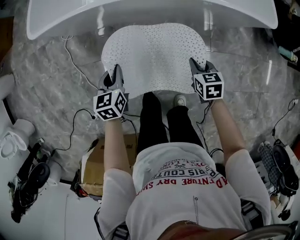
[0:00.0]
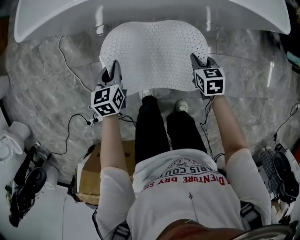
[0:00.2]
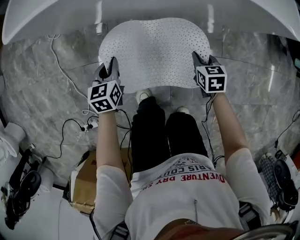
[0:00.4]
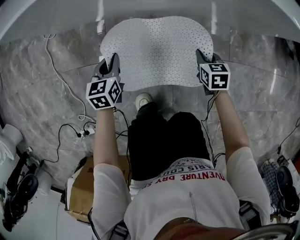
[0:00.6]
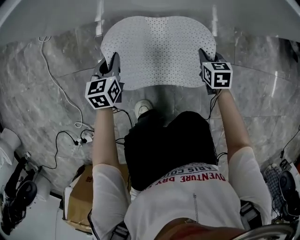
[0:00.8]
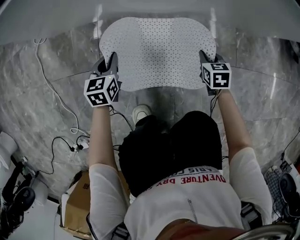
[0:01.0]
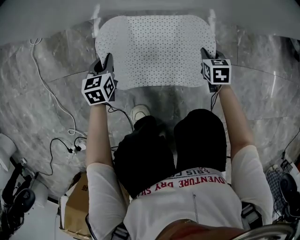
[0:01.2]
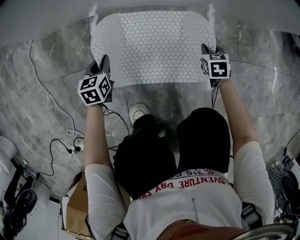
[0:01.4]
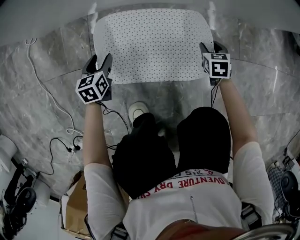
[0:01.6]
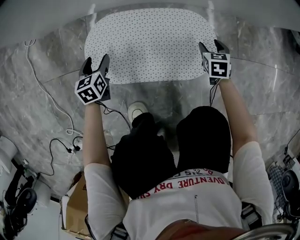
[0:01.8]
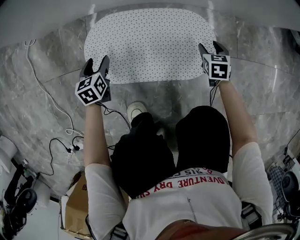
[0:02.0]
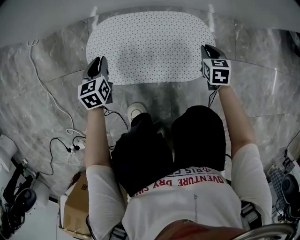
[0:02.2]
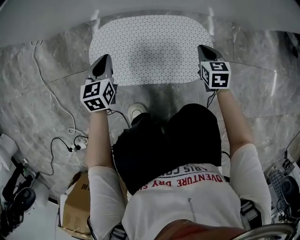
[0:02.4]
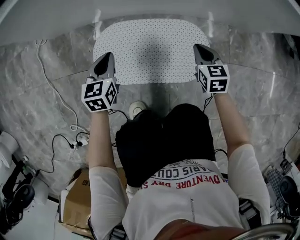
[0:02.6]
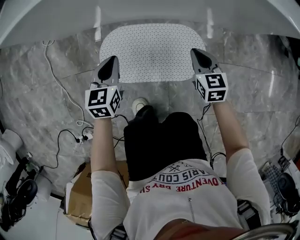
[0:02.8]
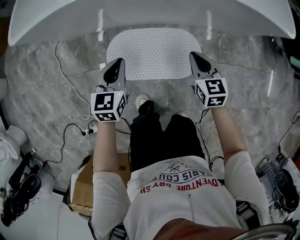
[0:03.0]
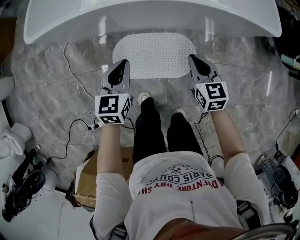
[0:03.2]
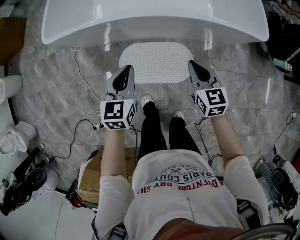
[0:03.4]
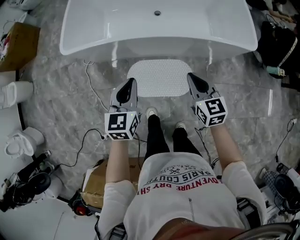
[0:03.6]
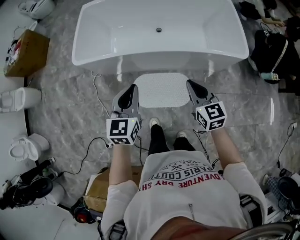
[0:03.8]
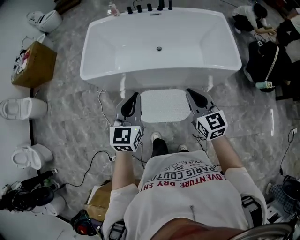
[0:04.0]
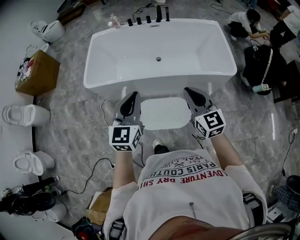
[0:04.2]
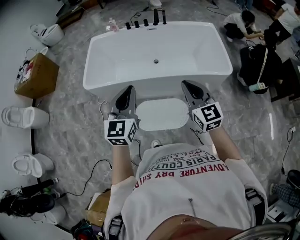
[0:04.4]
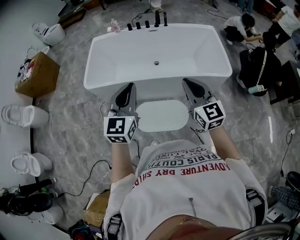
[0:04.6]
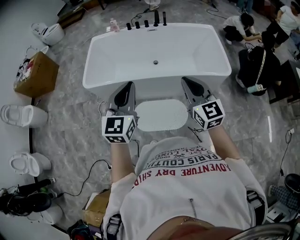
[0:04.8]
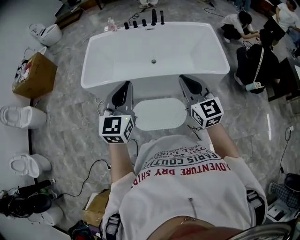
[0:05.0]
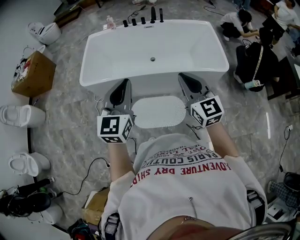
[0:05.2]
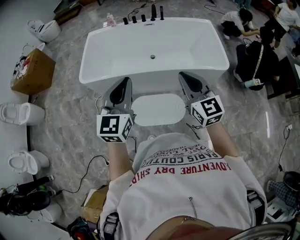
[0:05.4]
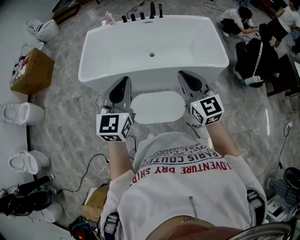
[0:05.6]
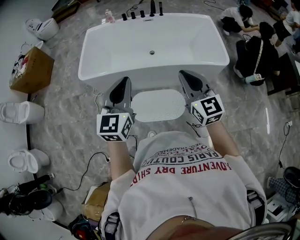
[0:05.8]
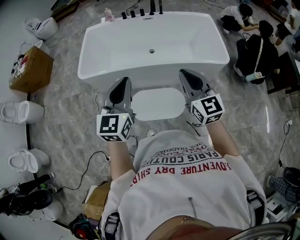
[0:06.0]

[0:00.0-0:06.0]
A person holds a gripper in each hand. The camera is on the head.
0:00.0 to 0:01.6: The two grippers go approximately 50 cm downward. The left gripper opens its fingers; the right gripper opens.
0:01.6 to 0:03.0: Both grippers move upward, roughly 35 cm. The right gripper turns by approximately 30 degrees, and closes. Meanwhile the left gripper closes.
0:03.0 to 0:04.4: Both grippers travel together upward, approximately 60 cm. The right gripper changes its angle by about 30 degrees. The left gripper rotates roughly 30 degrees.
0:04.4 to 0:06.0: The grippers stay close to where they were, moving slightly.

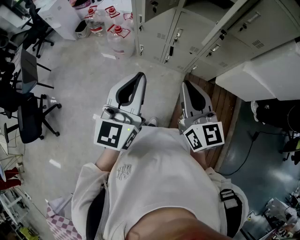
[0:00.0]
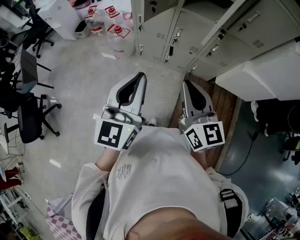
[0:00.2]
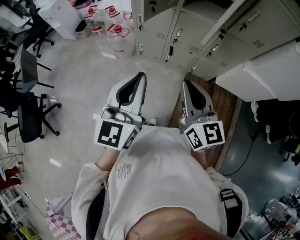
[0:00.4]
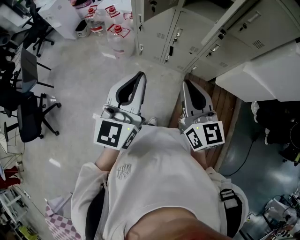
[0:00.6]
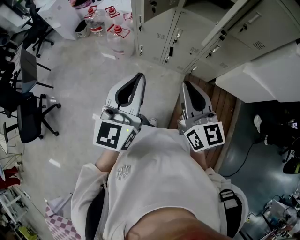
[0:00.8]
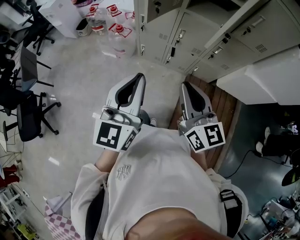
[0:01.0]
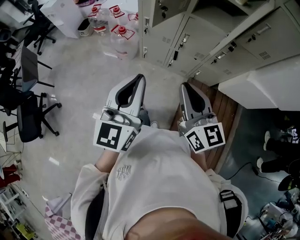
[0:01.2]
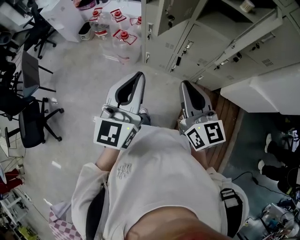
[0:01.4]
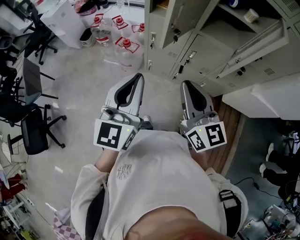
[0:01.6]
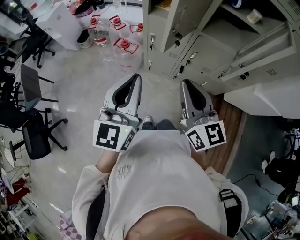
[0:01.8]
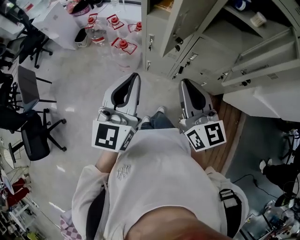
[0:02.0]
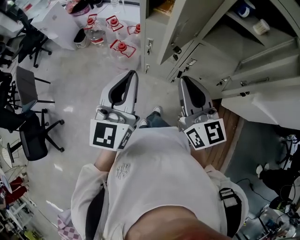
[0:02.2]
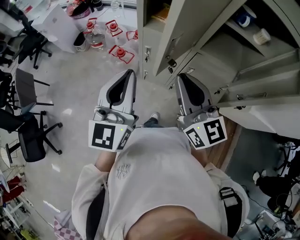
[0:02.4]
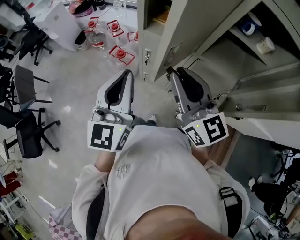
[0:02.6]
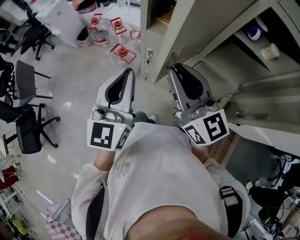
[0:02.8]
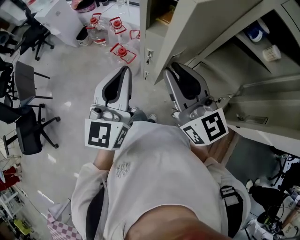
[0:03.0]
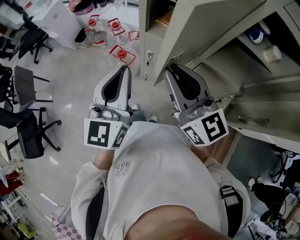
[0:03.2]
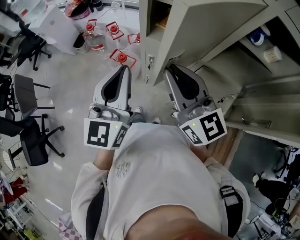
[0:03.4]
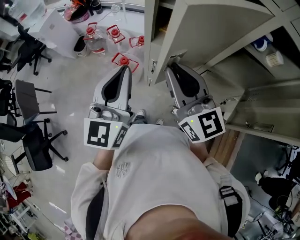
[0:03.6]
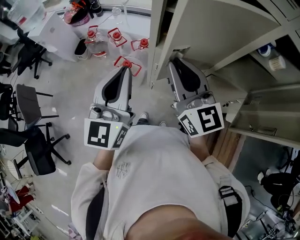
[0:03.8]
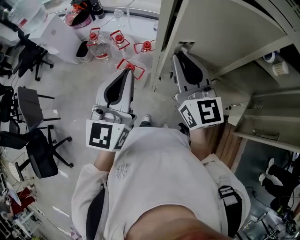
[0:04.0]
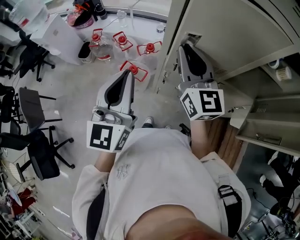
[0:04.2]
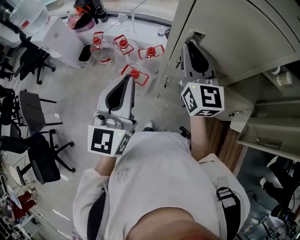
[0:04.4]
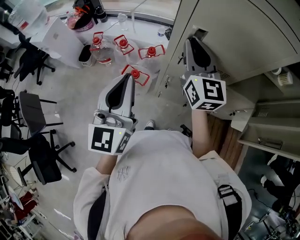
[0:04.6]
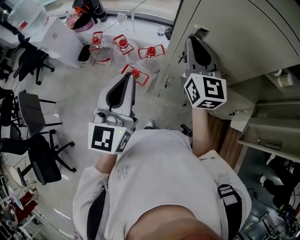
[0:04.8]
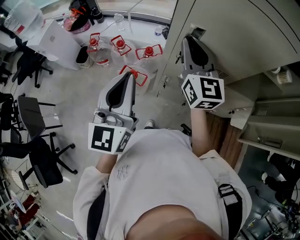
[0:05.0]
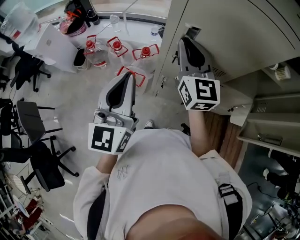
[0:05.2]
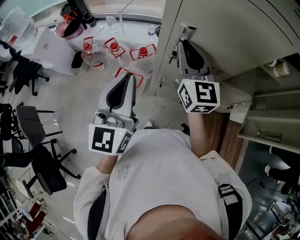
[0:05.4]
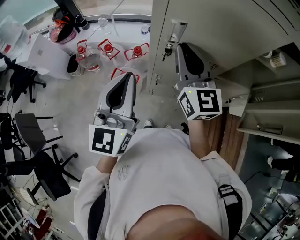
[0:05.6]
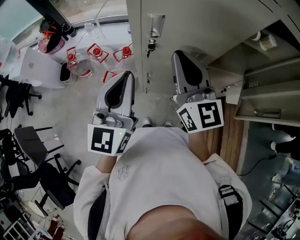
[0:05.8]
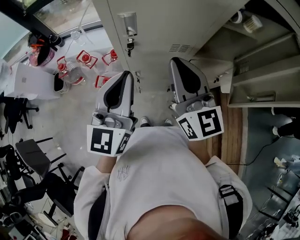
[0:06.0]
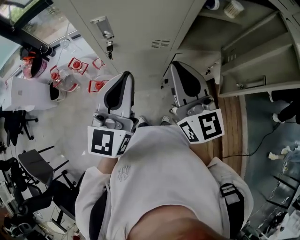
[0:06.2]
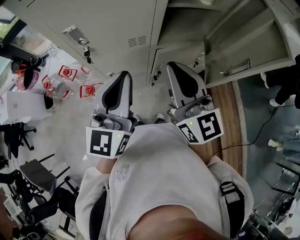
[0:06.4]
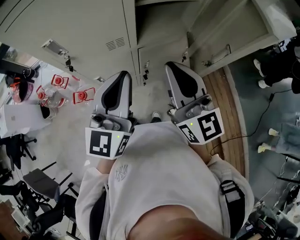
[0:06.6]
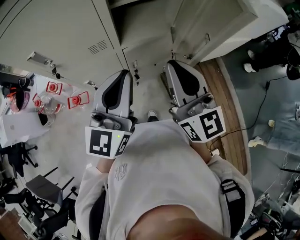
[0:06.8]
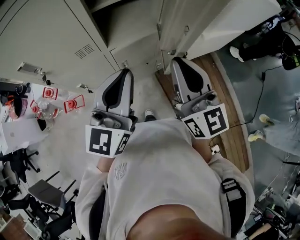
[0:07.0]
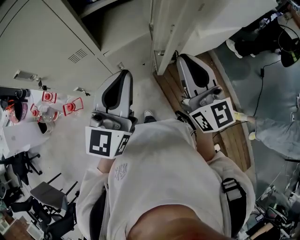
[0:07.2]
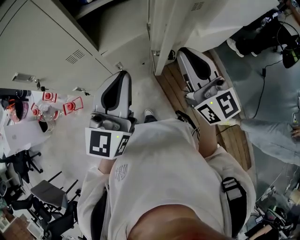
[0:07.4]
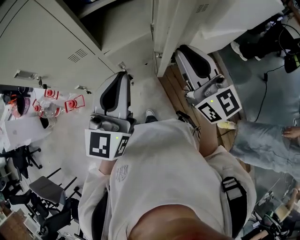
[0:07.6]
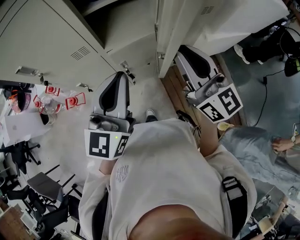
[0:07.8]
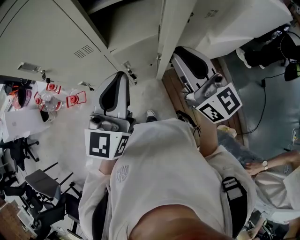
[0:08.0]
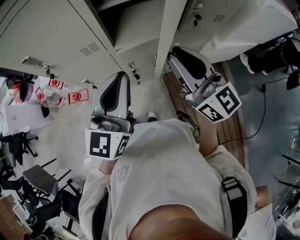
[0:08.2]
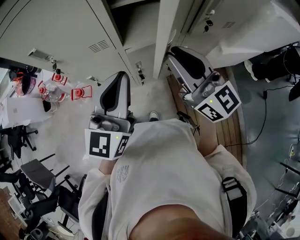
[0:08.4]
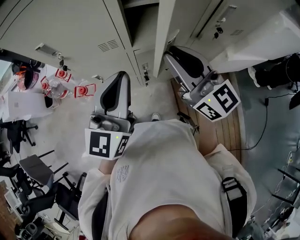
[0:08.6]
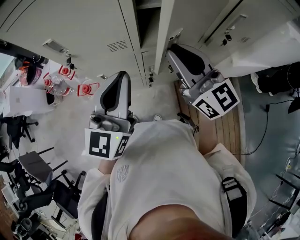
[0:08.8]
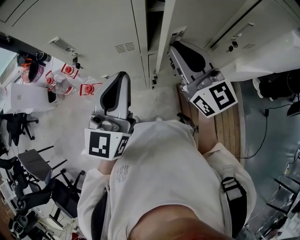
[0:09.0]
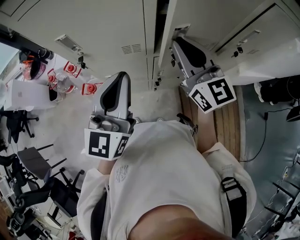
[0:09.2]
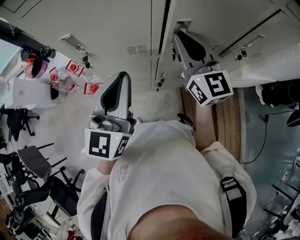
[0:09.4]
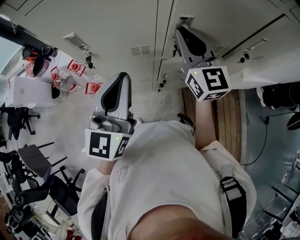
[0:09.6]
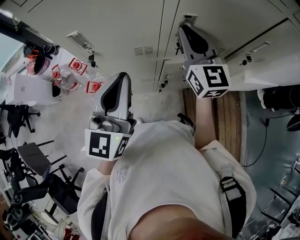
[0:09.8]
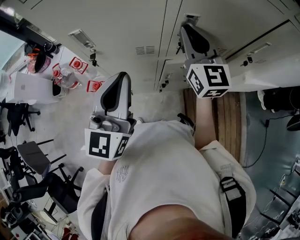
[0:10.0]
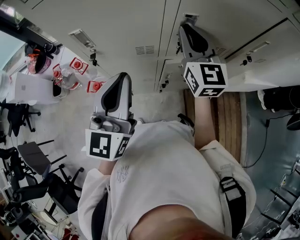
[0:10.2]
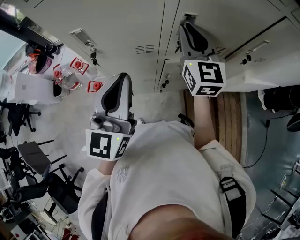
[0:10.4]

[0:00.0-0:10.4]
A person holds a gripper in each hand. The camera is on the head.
0:00.0 to 0:01.4: The grippers both shift forward and to the left by roughly 10 cm.
0:01.4 to 0:03.0: The two grippers go some 25 cm forward.
0:03.0 to 0:04.4: The right gripper is displaced forward by roughly 20 cm, and rotates roughly 30 degrees, while the left gripper travels forward and to the left by approximately 15 cm.
0:04.4 to 0:06.0: The right gripper shifts approximately 15 cm backward and to the right. Meanwhile the left gripper moves to the right, about 10 cm, and swivels approximately 20 degrees.
0:06.0 to 0:07.4: The grippers both shift to the right by roughly 35 cm. The left gripper turns by some 20 degrees.
0:07.4 to 0:09.0: The left gripper goes approximately 15 cm to the left; the right gripper travels to the left and forward by some 20 cm, and swivels roughly 20 degrees.
0:09.0 to 0:10.4: The right gripper travels forward by some 10 cm, and rotates approximately 20 degrees. The left gripper shifts about 5 cm to the left.

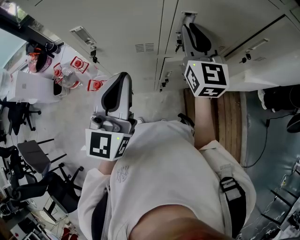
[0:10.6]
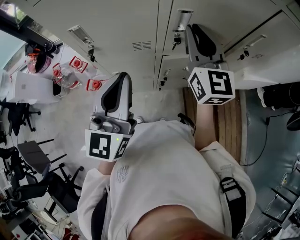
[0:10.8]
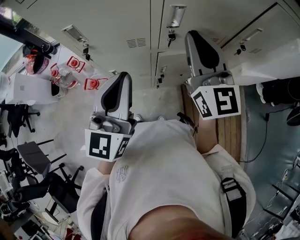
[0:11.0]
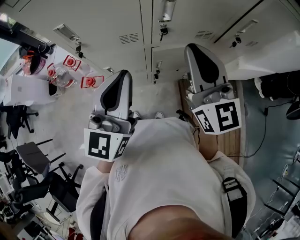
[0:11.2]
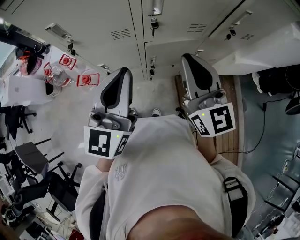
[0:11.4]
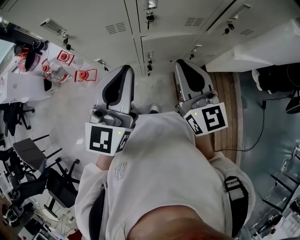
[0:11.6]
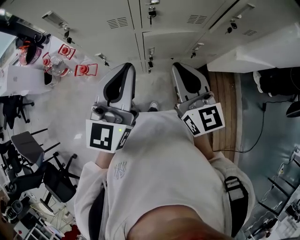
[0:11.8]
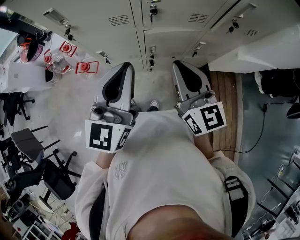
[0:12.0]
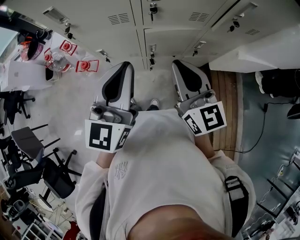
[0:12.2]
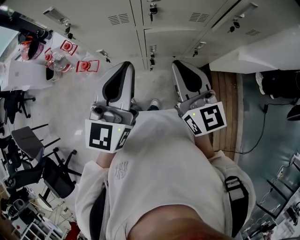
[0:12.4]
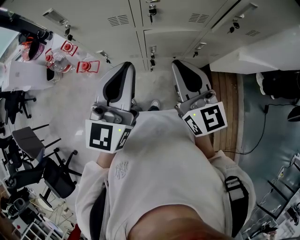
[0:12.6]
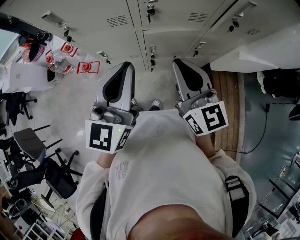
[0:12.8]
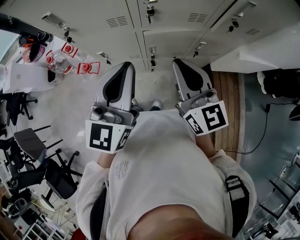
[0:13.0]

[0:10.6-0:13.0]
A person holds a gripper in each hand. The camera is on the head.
0:10.6 to 0:11.8: The right gripper is displaced backward and downward by roughly 20 cm. The left gripper shifts about 10 cm to the right and backward.
0:11.8 to 0:13.0: Both grippers stay about where they are.

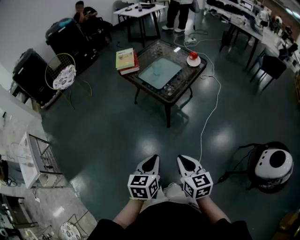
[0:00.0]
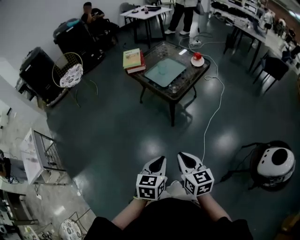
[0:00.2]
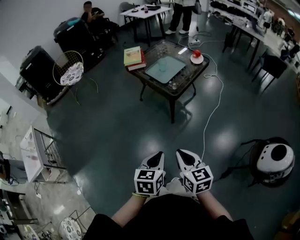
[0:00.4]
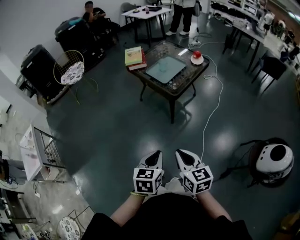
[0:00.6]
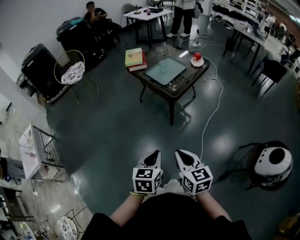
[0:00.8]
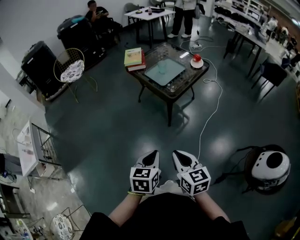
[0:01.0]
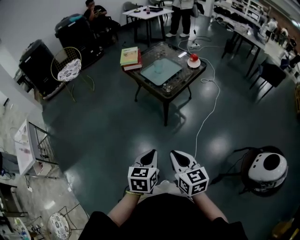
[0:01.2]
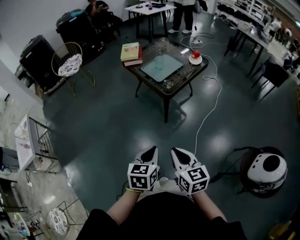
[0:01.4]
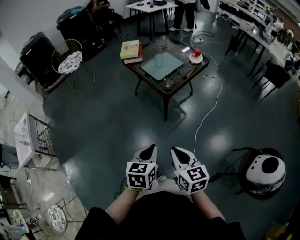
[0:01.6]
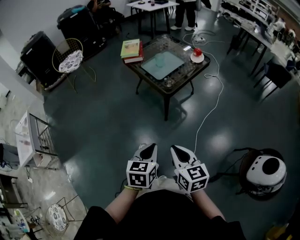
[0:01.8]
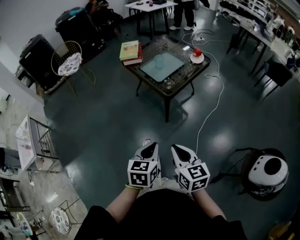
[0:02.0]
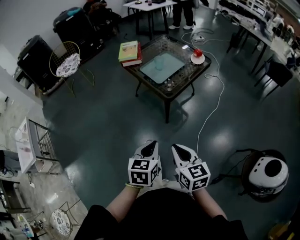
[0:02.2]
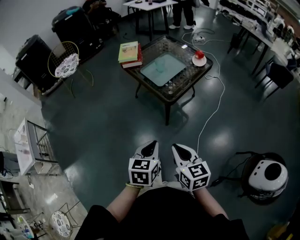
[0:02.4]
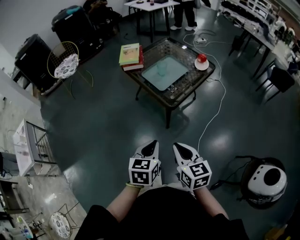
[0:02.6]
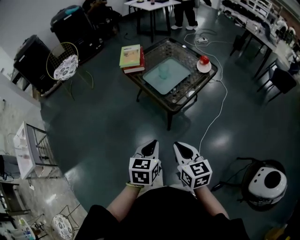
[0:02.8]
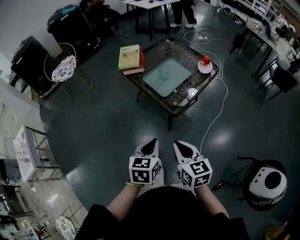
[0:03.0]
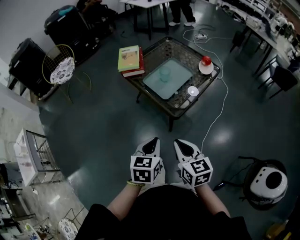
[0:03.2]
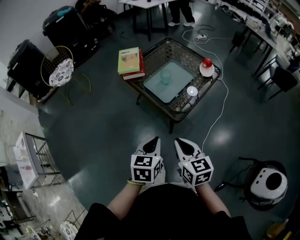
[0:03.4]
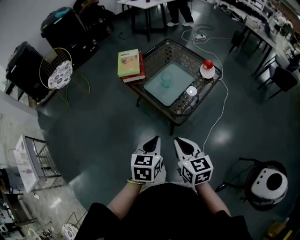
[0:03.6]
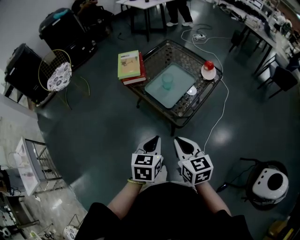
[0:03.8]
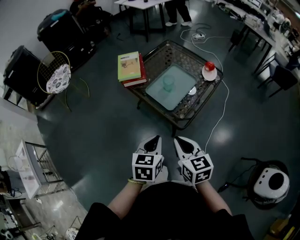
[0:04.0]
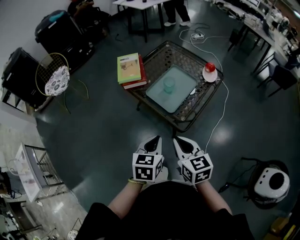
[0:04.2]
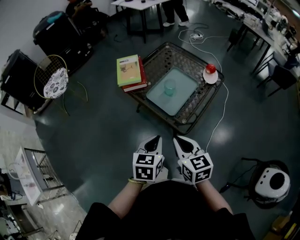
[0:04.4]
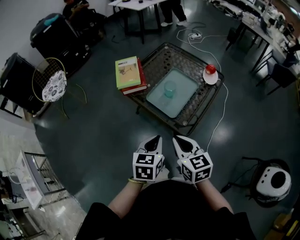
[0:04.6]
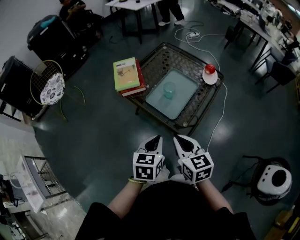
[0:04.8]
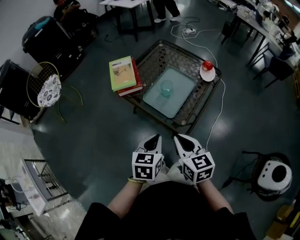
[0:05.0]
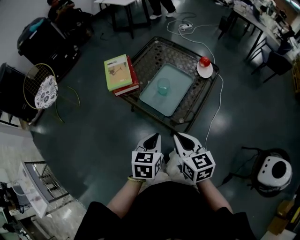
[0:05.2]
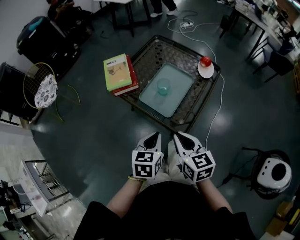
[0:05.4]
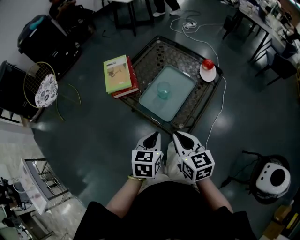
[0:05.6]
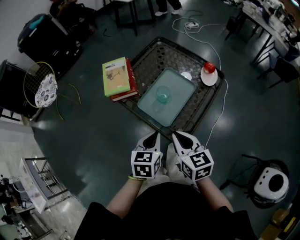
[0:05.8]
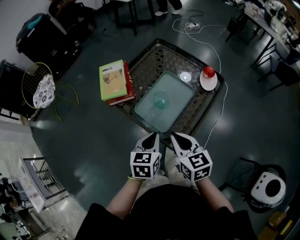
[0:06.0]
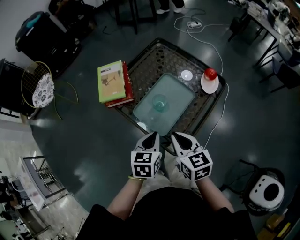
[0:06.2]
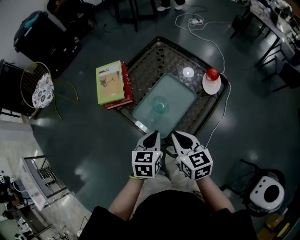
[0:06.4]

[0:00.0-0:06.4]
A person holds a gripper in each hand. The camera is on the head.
0:00.0 to 0:01.6: The right gripper ends up roughly 5 cm from where it was. The left gripper shifts by roughly 5 cm.
0:01.6 to 0:03.2: Both grippers move forward, about 25 cm.
0:03.2 to 0:04.8: The two grippers go approximately 15 cm forward.
0:04.8 to 0:06.4: The two grippers go about 20 cm forward and to the right.
